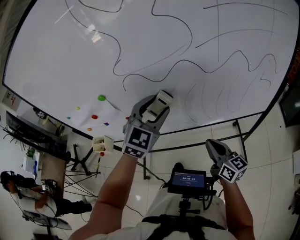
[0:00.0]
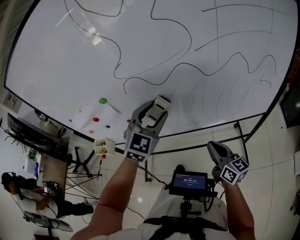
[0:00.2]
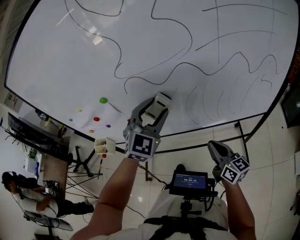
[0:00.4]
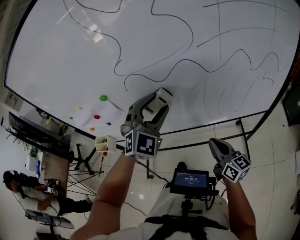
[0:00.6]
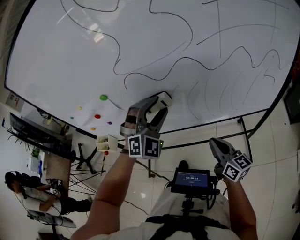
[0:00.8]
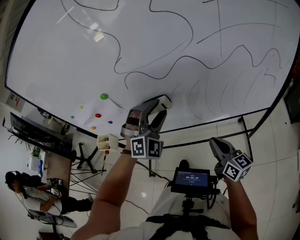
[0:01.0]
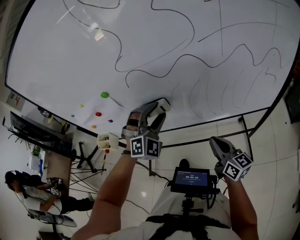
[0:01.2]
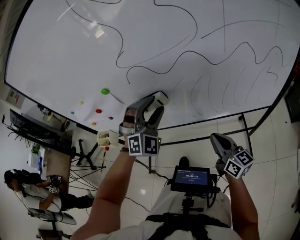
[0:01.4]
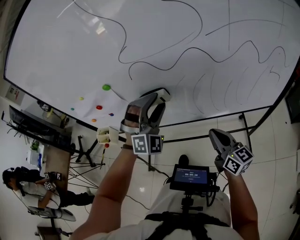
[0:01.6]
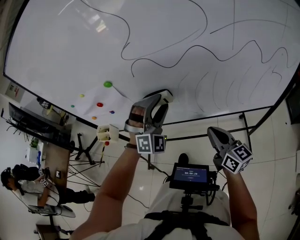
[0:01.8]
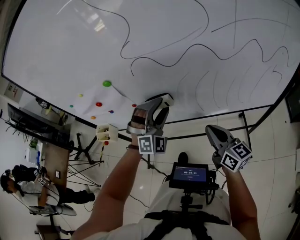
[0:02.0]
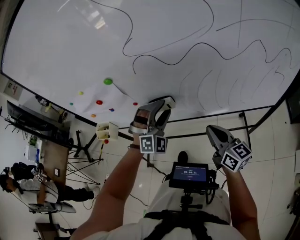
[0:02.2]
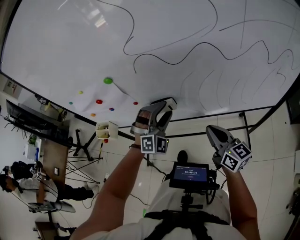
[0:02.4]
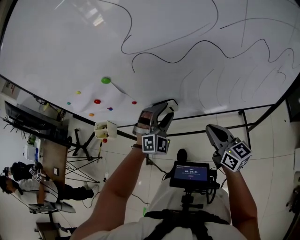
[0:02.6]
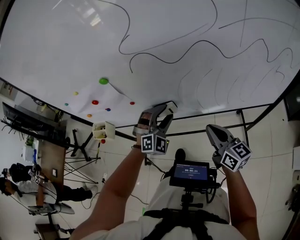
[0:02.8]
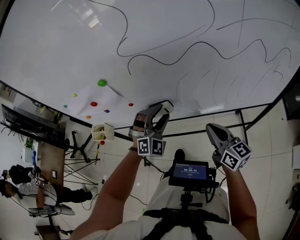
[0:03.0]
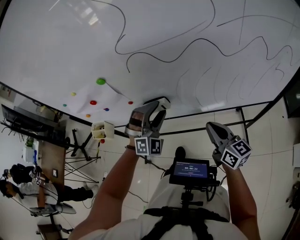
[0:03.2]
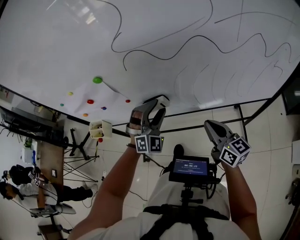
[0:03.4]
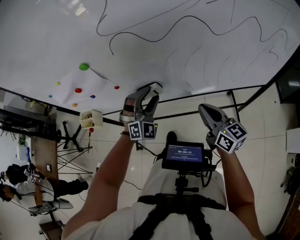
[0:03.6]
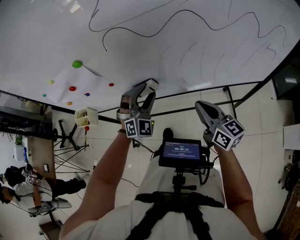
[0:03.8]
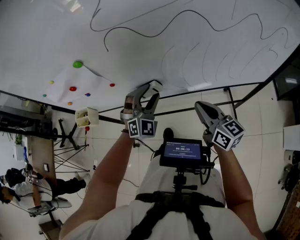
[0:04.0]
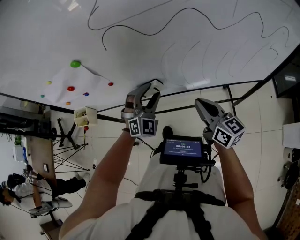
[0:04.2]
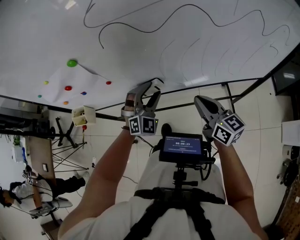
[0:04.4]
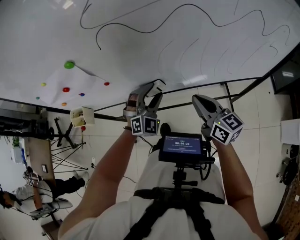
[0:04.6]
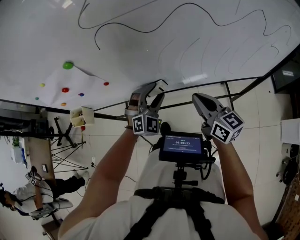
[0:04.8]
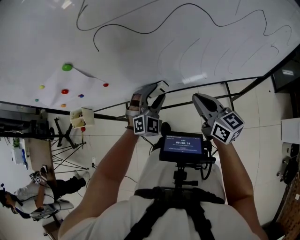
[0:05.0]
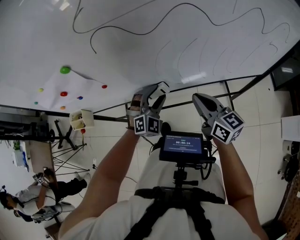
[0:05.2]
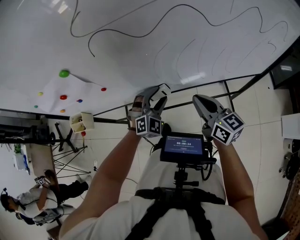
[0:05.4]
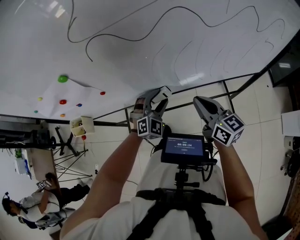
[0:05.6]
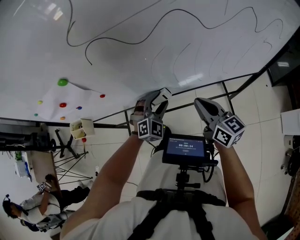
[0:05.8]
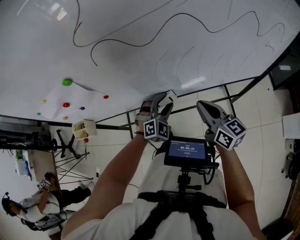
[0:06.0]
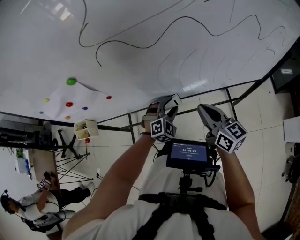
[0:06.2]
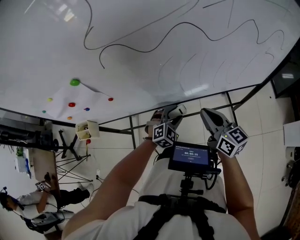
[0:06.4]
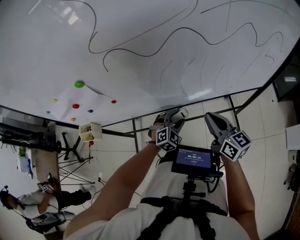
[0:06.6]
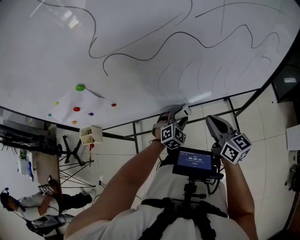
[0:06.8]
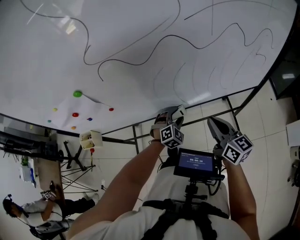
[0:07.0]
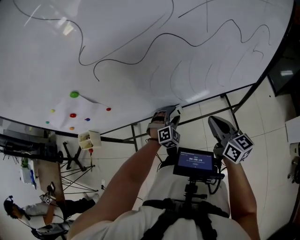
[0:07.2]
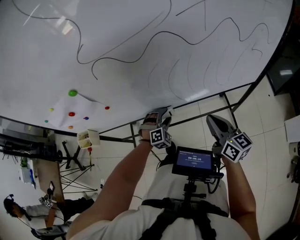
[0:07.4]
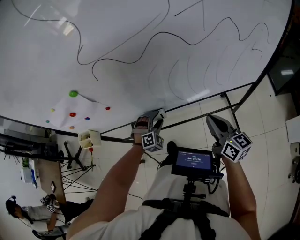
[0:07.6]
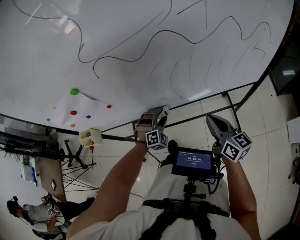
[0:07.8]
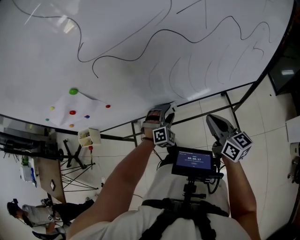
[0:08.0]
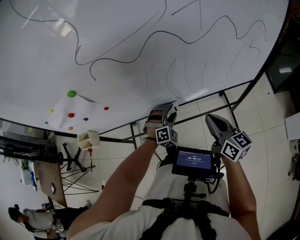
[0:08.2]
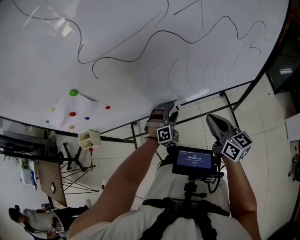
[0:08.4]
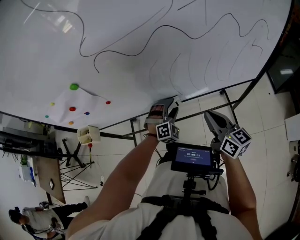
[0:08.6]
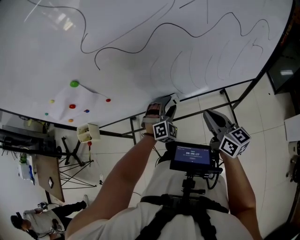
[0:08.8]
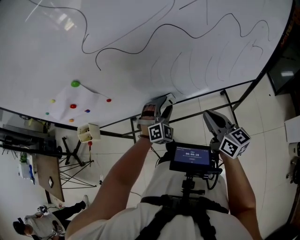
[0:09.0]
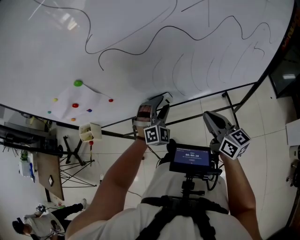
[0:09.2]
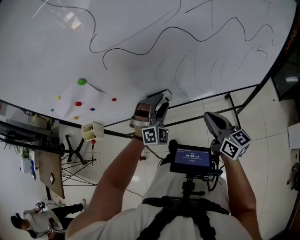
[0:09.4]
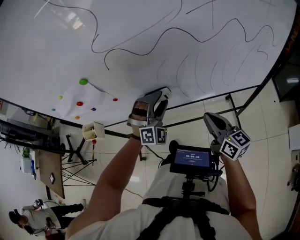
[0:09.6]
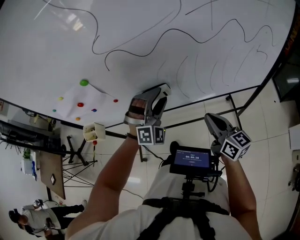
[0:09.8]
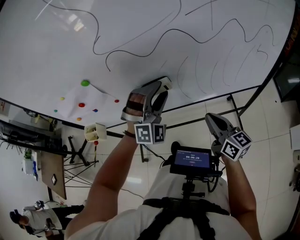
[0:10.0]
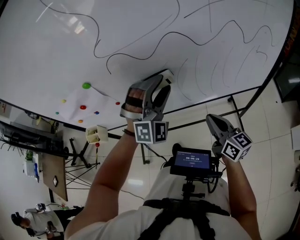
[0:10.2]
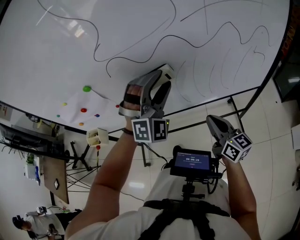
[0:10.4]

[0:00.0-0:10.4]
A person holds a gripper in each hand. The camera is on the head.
0:00.0 to 0:01.4: The left gripper is displaced to the left by roughly 5 cm, and rotates some 40 degrees.
0:01.4 to 0:03.0: The left gripper goes some 10 cm downward.
0:03.0 to 0:04.4: The left gripper is displaced downward by about 5 cm.
0:04.4 to 0:06.0: The left gripper goes approximately 10 cm downward and to the right.
0:06.0 to 0:07.4: The left gripper goes about 5 cm downward; the right gripper shifts about 5 cm to the right.
0:07.4 to 0:09.0: The left gripper heads upward, covering about 10 cm, and travels to the right and back again, some 5 cm each way.
0:09.0 to 0:10.4: The left gripper goes some 25 cm upward, and swivels roughly 20 degrees.

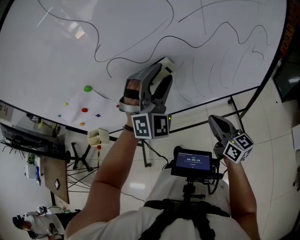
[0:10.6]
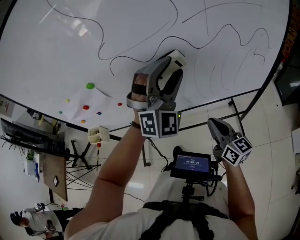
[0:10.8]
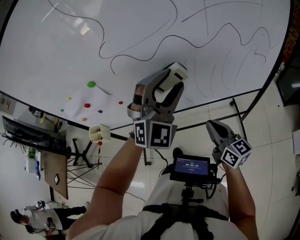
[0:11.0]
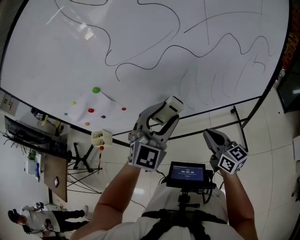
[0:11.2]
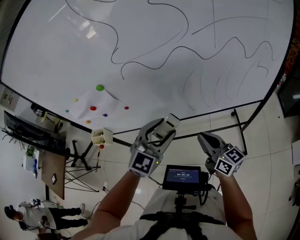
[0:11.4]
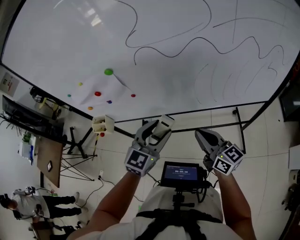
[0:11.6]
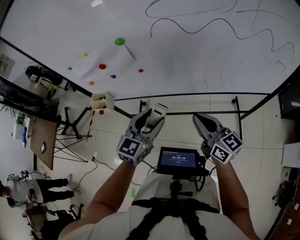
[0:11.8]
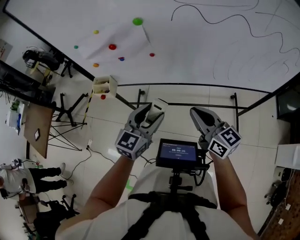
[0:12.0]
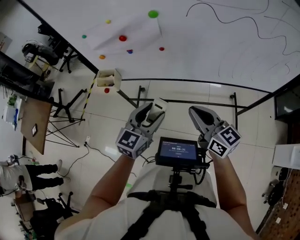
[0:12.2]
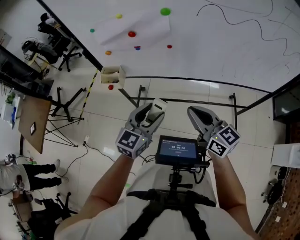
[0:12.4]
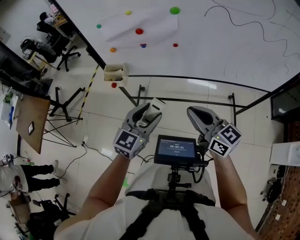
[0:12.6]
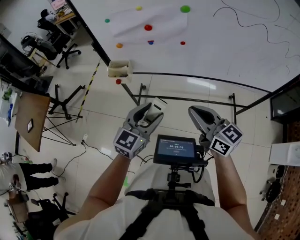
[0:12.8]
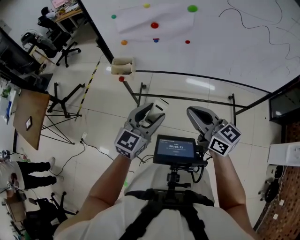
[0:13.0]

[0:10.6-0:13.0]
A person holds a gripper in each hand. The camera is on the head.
0:10.6 to 0:11.8: The left gripper travels to the left, backward and downward by some 30 cm, and rolls counterclockwise, seen from behind, by some 70 degrees. The right gripper heads to the left, covering some 20 cm.
0:11.8 to 0:13.0: The left gripper moves to the left and backward, roughly 25 cm, while the right gripper travels to the left by roughly 25 cm.

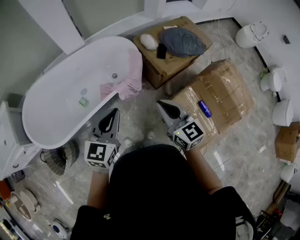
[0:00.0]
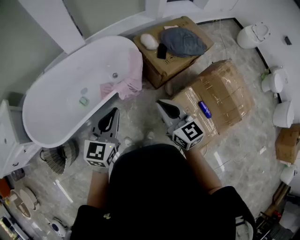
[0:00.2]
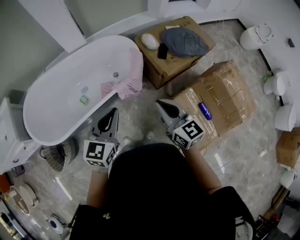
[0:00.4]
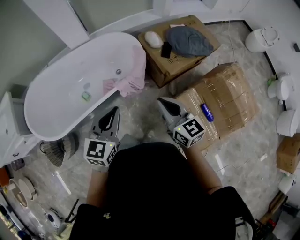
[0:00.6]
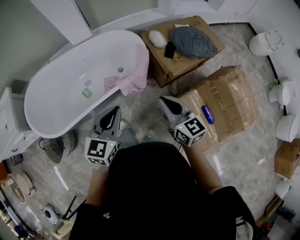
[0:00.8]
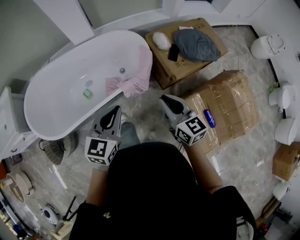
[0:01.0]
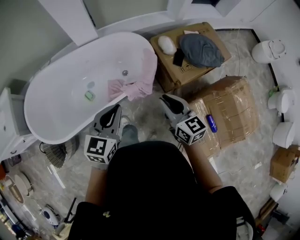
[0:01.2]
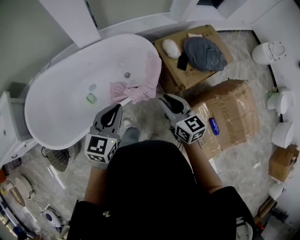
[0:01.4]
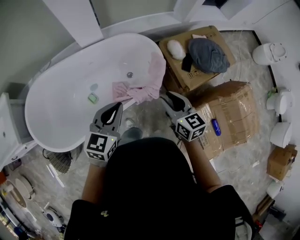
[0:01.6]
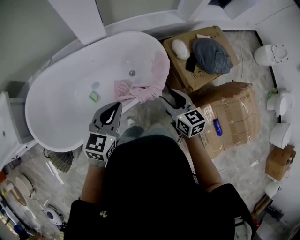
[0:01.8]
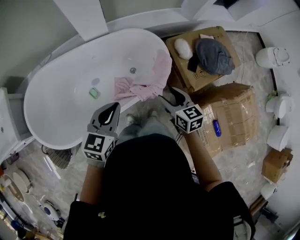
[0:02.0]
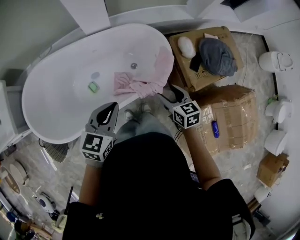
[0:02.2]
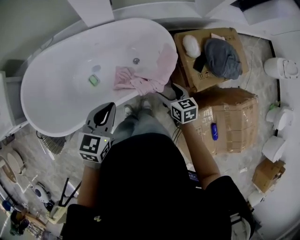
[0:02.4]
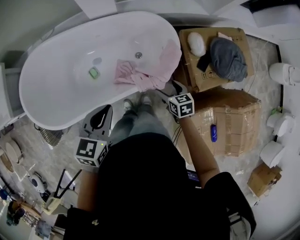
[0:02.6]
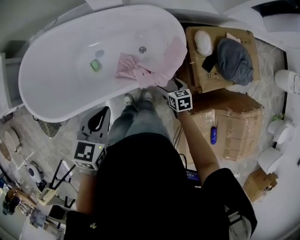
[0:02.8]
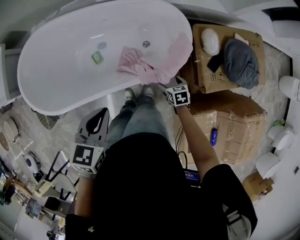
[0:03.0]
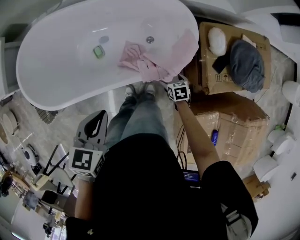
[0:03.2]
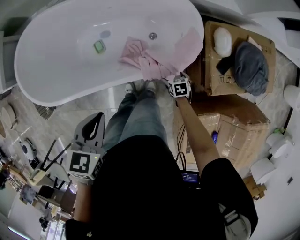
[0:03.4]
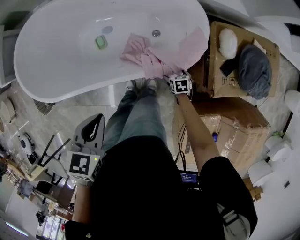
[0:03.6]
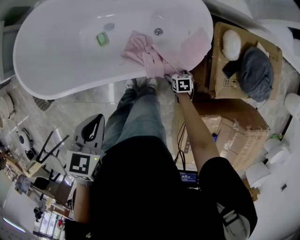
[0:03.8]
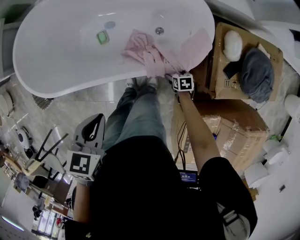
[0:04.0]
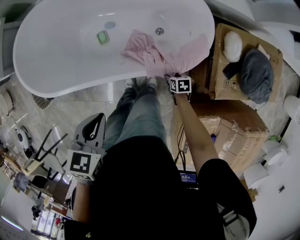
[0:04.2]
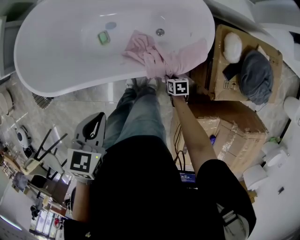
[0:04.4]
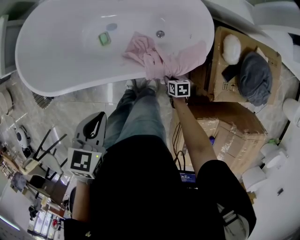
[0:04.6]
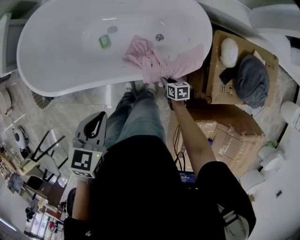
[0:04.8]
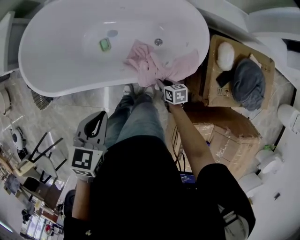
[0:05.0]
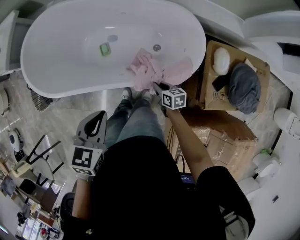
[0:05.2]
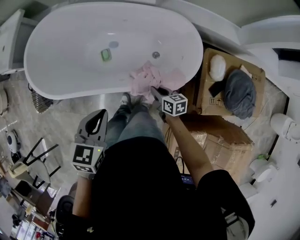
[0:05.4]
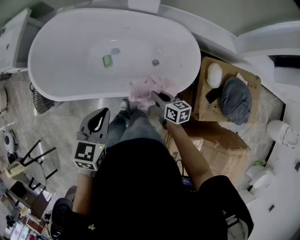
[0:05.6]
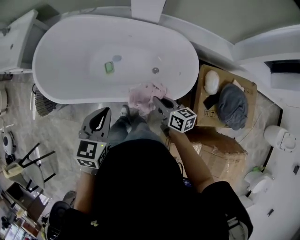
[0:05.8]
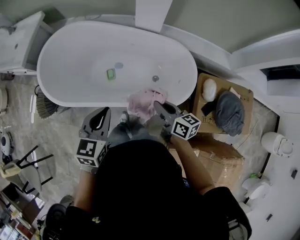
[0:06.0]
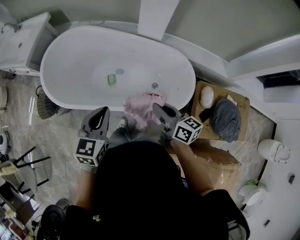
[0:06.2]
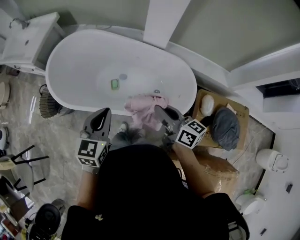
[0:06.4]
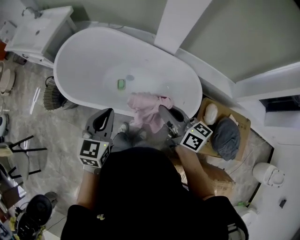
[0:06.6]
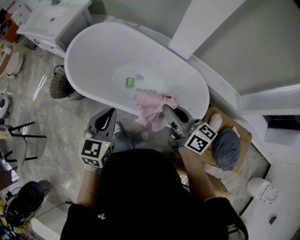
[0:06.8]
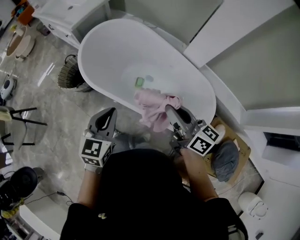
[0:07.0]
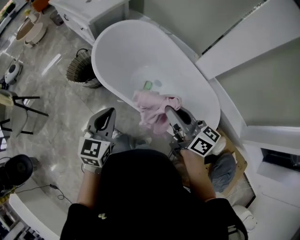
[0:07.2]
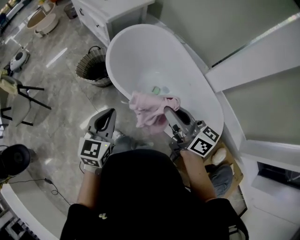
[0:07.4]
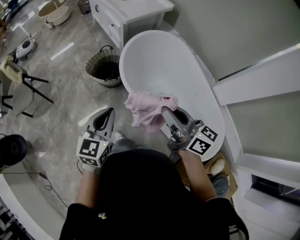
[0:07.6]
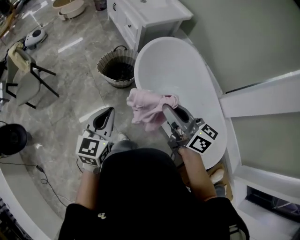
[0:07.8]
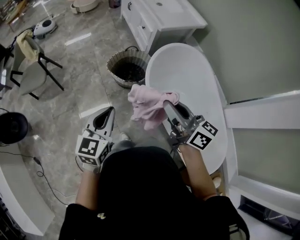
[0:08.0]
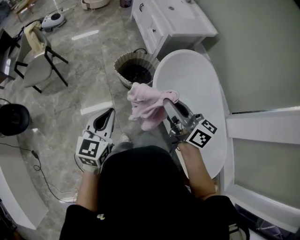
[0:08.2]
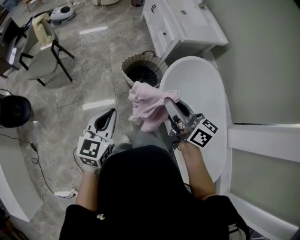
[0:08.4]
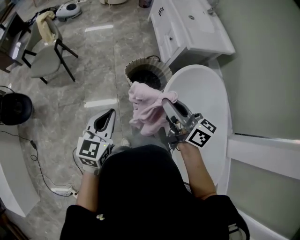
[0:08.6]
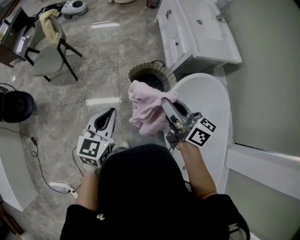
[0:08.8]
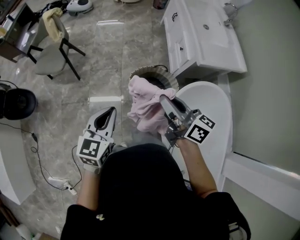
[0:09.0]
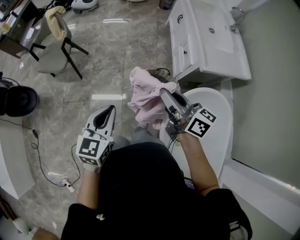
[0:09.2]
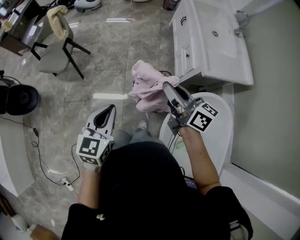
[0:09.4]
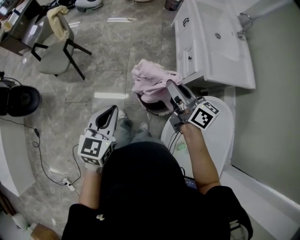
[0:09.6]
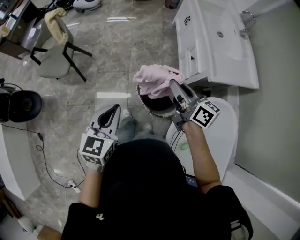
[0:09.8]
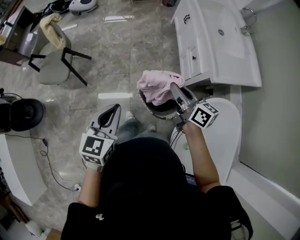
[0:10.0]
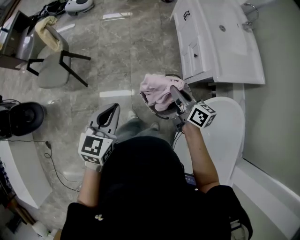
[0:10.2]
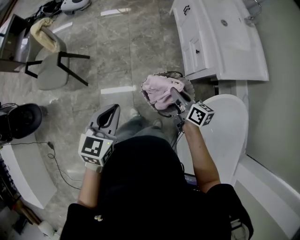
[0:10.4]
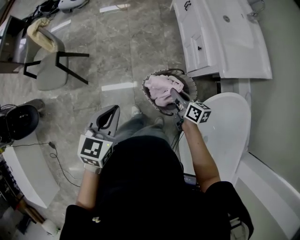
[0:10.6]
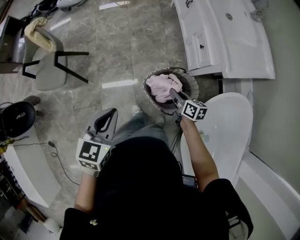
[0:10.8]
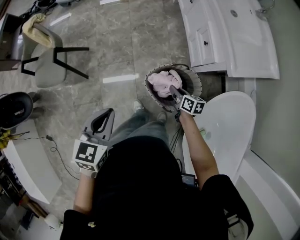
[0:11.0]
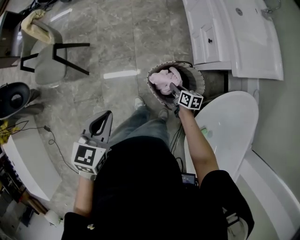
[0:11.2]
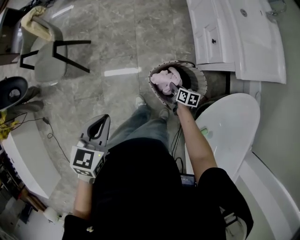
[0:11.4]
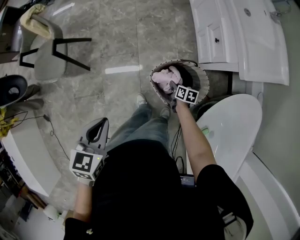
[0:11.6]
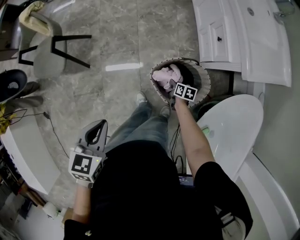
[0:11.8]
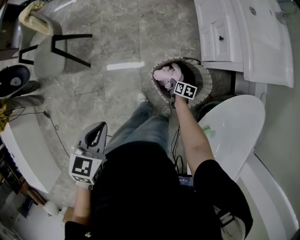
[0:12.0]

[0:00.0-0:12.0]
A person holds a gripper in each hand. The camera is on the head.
0:00.0 to 0:01.6: The two grippers go about 25 cm forward and to the left.
0:01.6 to 0:03.0: The right gripper shifts approximately 40 cm downward, angles its fingers downward, by approximately 40 degrees, and opens up. The left gripper is displaced downward by about 10 cm, and turns by roughly 30 degrees.
0:03.0 to 0:04.4: The left gripper moves downward, about 5 cm. Meanwhile the right gripper moves downward, about 15 cm, and closes its fingers.
0:04.4 to 0:06.0: The right gripper is displaced upward by some 40 cm, and tips its fingers upward by some 50 degrees. Meanwhile the left gripper goes roughly 15 cm upward, and changes its angle by roughly 30 degrees.
0:06.0 to 0:07.6: The right gripper changes place by about 50 cm, and changes its angle by about 50 degrees. The left gripper ends up some 35 cm from where it was, and rotates roughly 40 degrees.
0:07.6 to 0:09.0: The right gripper changes place by roughly 50 cm, and turns by approximately 30 degrees, while the left gripper ends up approximately 35 cm from where it was, and turns by about 30 degrees.
0:09.0 to 0:10.4: The left gripper is displaced forward by approximately 25 cm, while the right gripper goes approximately 30 cm forward and downward, and rotates some 20 degrees.
0:10.4 to 0:12.0: The right gripper heads downward, covering about 40 cm, and points its fingers roughly 40 degrees further downward. Meanwhile the left gripper goes roughly 15 cm downward and to the left.
